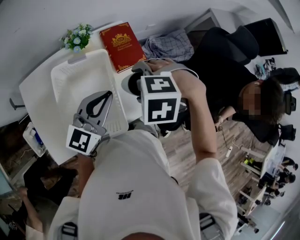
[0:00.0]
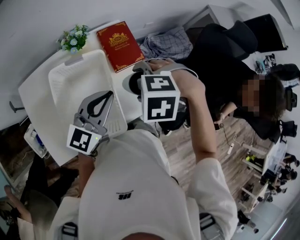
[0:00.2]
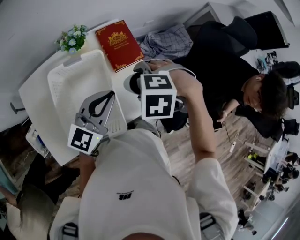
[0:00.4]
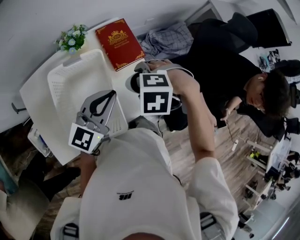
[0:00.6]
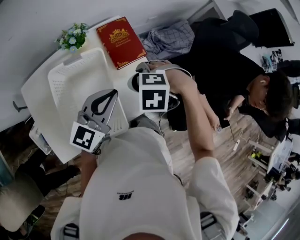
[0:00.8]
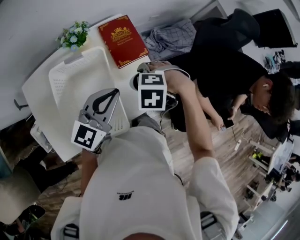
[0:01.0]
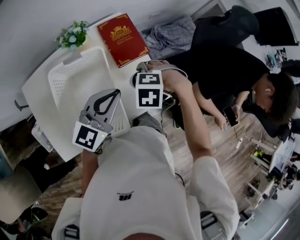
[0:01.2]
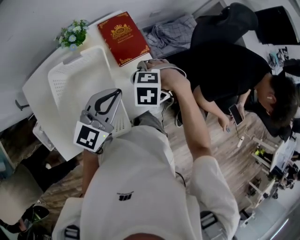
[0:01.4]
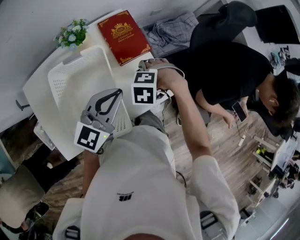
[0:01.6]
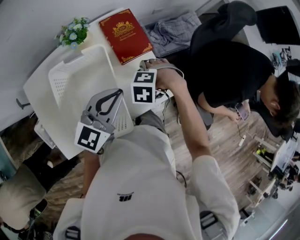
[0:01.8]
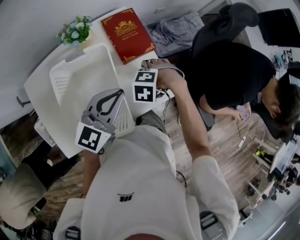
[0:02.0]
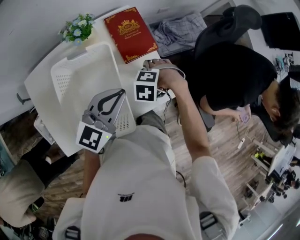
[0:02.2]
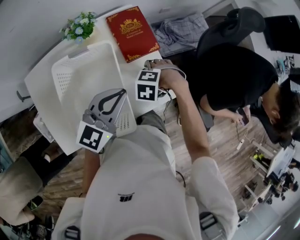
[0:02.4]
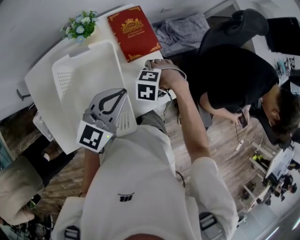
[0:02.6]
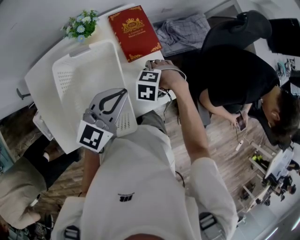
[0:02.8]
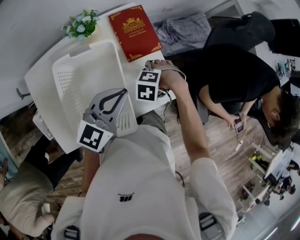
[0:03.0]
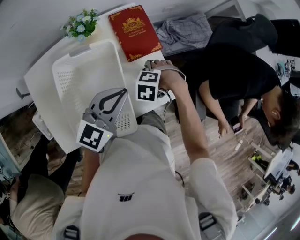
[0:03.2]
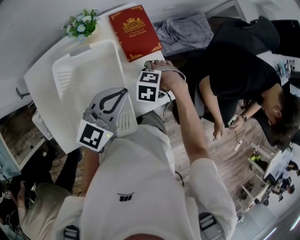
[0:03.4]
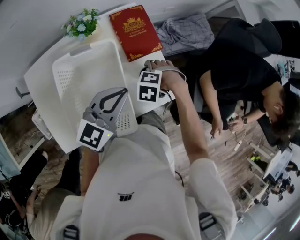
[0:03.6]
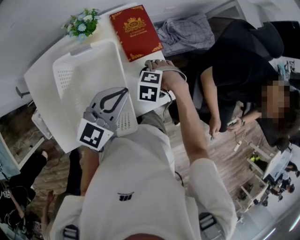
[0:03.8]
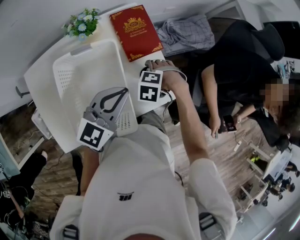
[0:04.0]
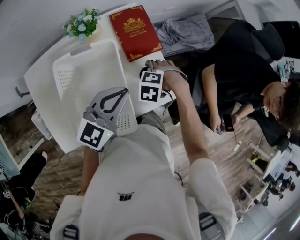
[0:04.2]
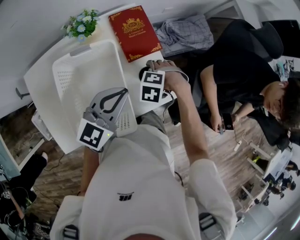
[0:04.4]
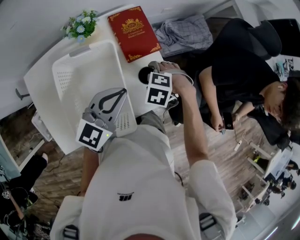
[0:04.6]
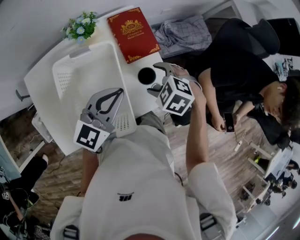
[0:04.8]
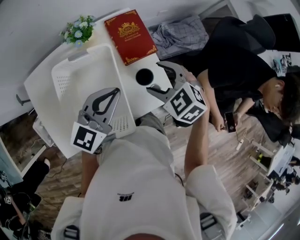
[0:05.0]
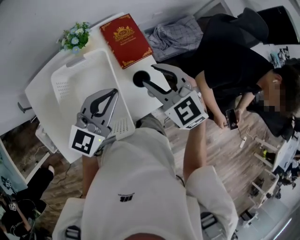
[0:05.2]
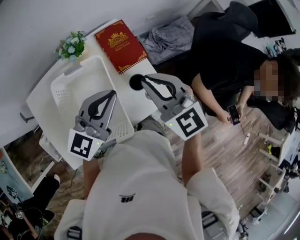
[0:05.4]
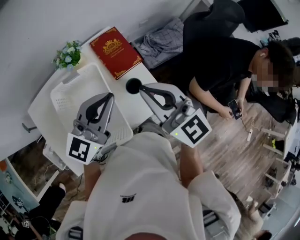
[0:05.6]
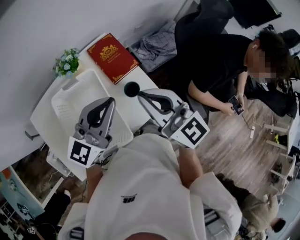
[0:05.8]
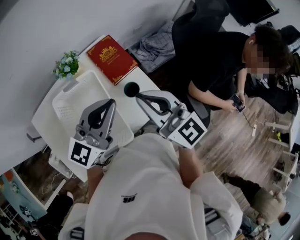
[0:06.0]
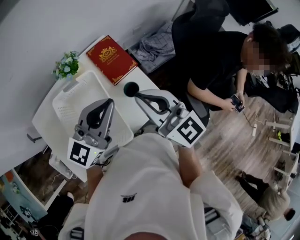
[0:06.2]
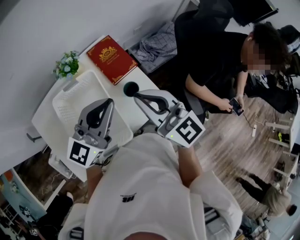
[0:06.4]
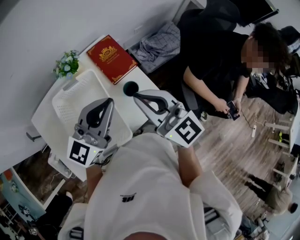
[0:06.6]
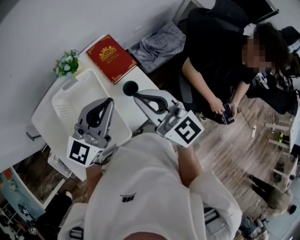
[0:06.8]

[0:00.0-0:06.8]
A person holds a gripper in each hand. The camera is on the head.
0:00.0 to 0:01.4: The left gripper shifts by about 5 cm. The right gripper moves downward, roughly 15 cm.
0:01.4 to 0:02.8: The right gripper is displaced downward by some 10 cm.
0:02.8 to 0:04.0: The two grippers keep their place.
0:04.0 to 0:05.4: The right gripper heads upward, covering roughly 25 cm, points its fingers about 70 degrees further upward, and closes its fingers, while the left gripper heads upward, covering some 5 cm.
0:05.4 to 0:06.8: The right gripper ends up about 5 cm from where it was, and turns by some 20 degrees; the left gripper shifts by about 5 cm.

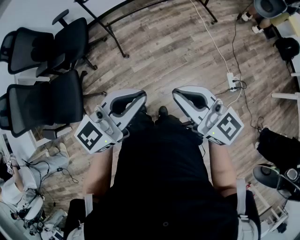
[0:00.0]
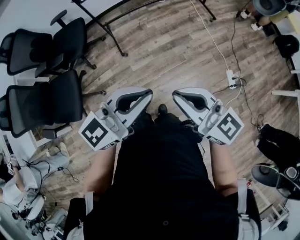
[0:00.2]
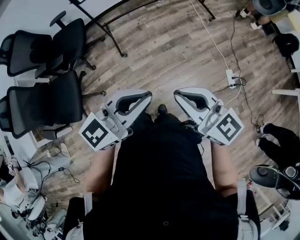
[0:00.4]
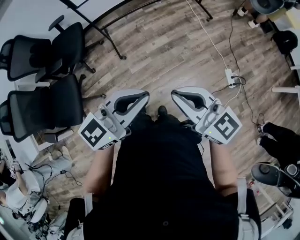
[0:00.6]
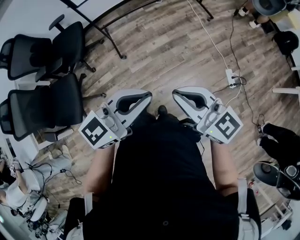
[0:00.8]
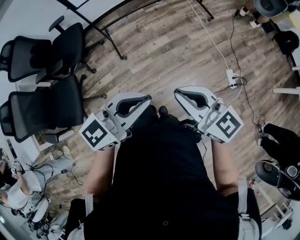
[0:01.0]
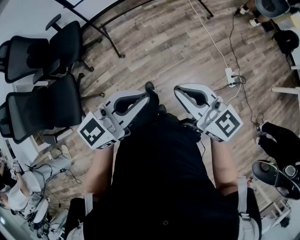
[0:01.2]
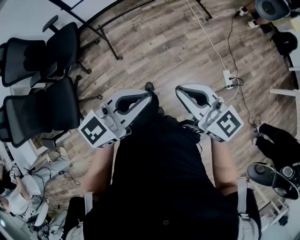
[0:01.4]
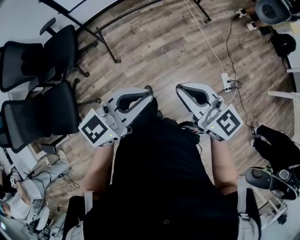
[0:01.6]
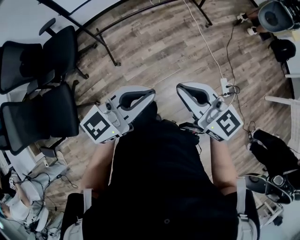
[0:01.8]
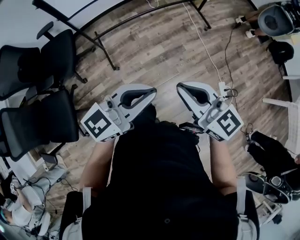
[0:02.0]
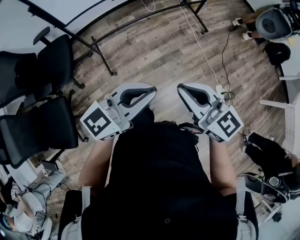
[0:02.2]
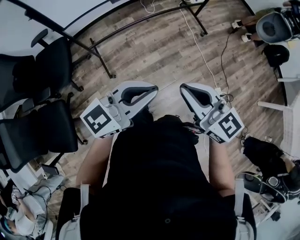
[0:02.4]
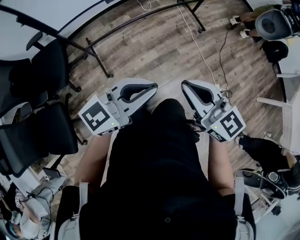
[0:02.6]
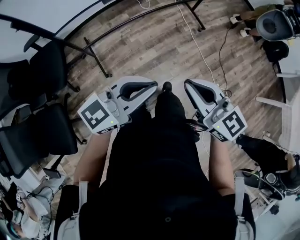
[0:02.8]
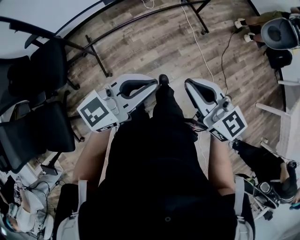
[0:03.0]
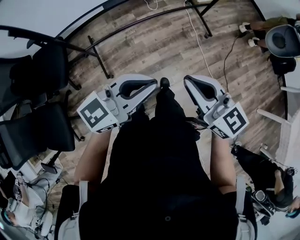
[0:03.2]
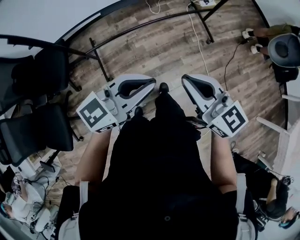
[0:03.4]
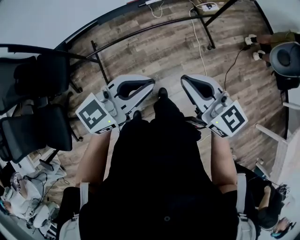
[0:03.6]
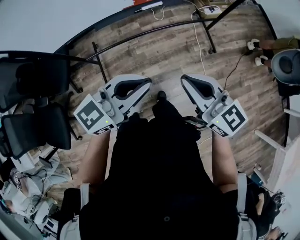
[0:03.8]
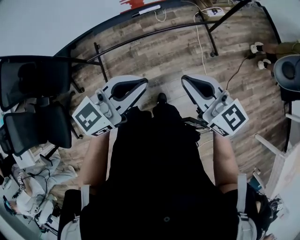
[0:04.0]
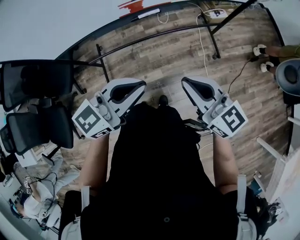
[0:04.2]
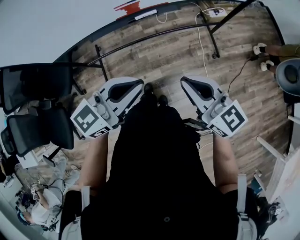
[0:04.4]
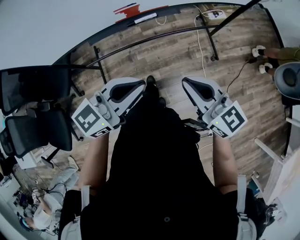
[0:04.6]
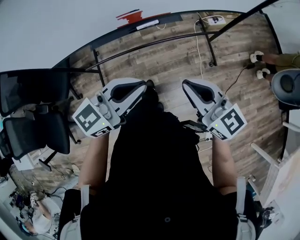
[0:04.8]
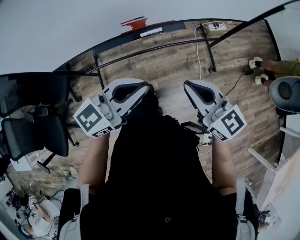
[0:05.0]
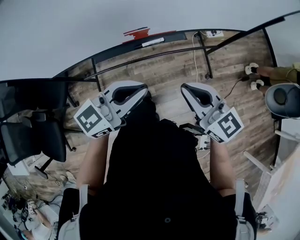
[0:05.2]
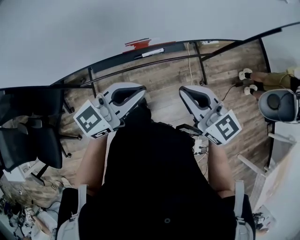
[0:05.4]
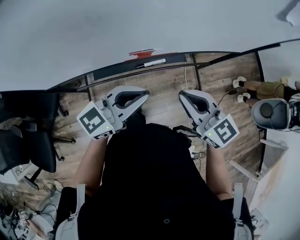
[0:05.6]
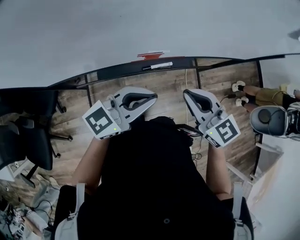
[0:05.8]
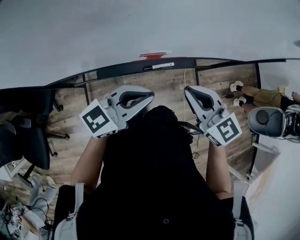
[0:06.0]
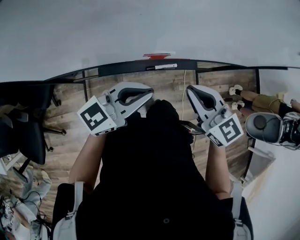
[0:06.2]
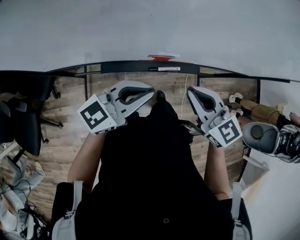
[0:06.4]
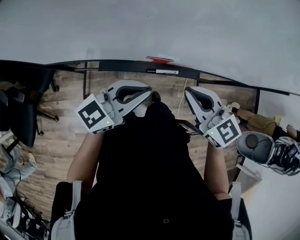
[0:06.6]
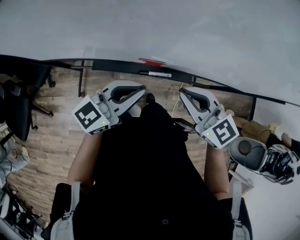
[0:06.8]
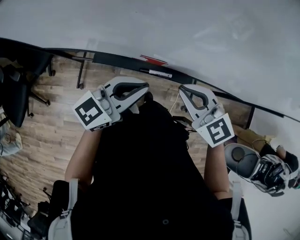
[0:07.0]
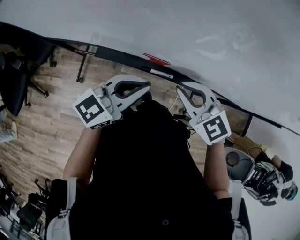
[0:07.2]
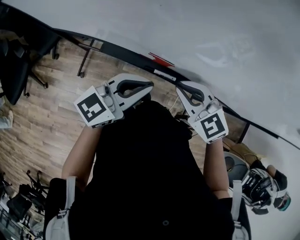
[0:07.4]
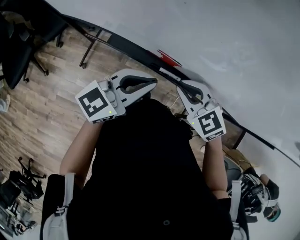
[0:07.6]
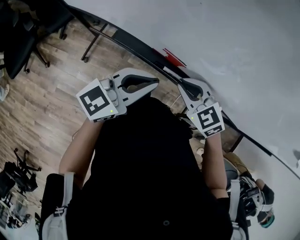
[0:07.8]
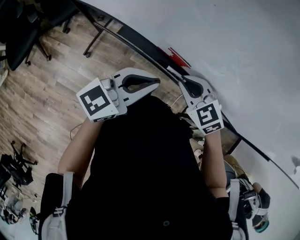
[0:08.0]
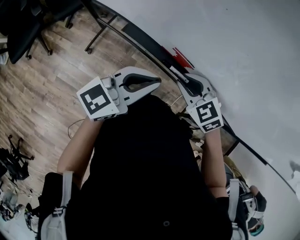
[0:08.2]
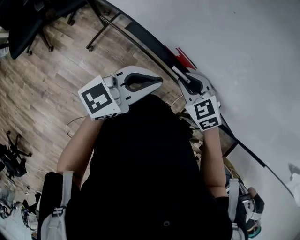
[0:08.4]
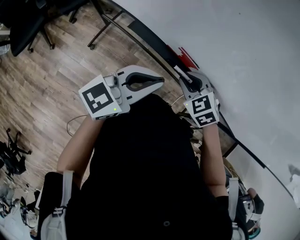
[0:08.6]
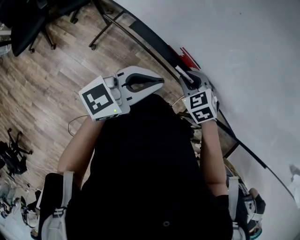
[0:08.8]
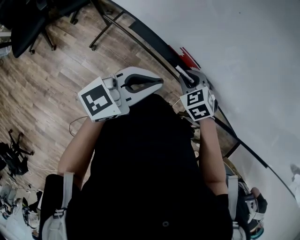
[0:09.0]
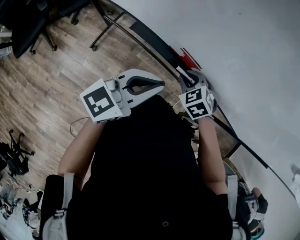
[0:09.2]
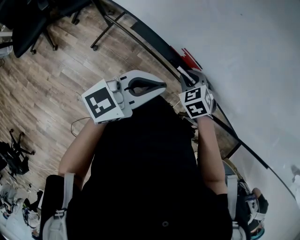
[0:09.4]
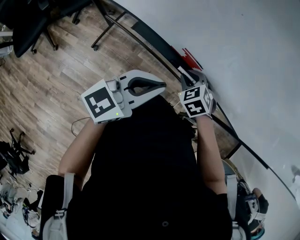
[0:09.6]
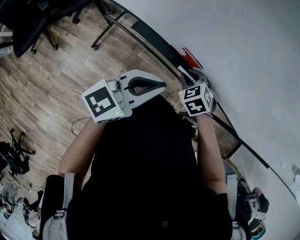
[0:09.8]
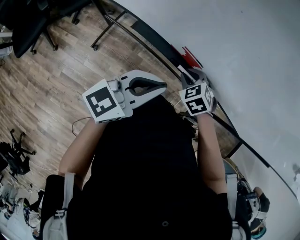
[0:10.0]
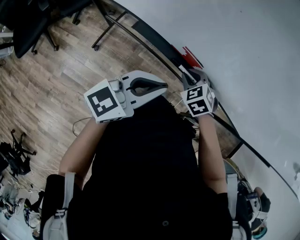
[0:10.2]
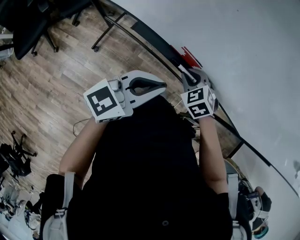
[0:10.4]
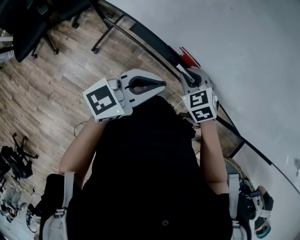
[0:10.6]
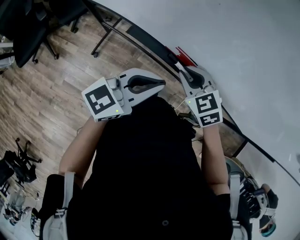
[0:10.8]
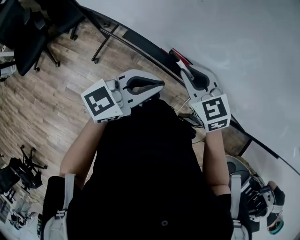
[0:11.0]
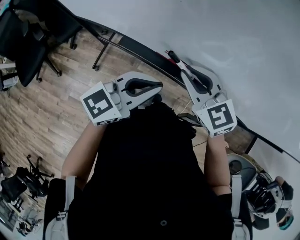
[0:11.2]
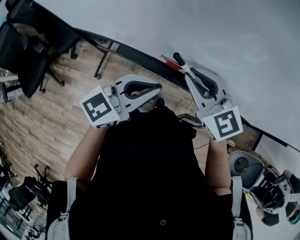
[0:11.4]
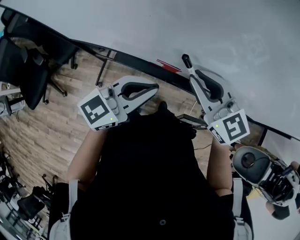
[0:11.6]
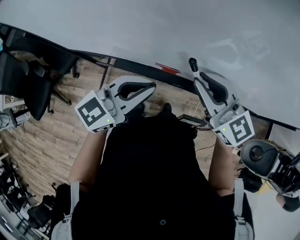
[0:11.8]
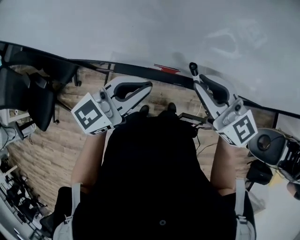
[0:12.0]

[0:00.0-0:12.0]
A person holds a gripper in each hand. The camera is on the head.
0:00.0 to 0:01.6: The two grippers go some 10 cm forward.
0:01.6 to 0:03.0: The two grippers go approximately 25 cm forward.
0:03.0 to 0:04.4: Both grippers move forward and to the right, about 30 cm.
0:04.4 to 0:06.0: The two grippers go some 25 cm forward and to the left. The right gripper turns by some 20 degrees.
0:06.0 to 0:07.6: The right gripper travels downward by approximately 10 cm, and rotates approximately 50 degrees; the left gripper moves roughly 5 cm, and swivels about 30 degrees.
0:07.6 to 0:09.0: The left gripper changes place by some 5 cm, while the right gripper is displaced downward by roughly 10 cm, and changes its angle by some 20 degrees.
0:09.0 to 0:10.4: The grippers move only a little.
0:10.4 to 0:12.0: The right gripper travels upward by some 25 cm, and points its fingers some 60 degrees further upward. The left gripper goes roughly 10 cm upward, and turns by about 20 degrees.

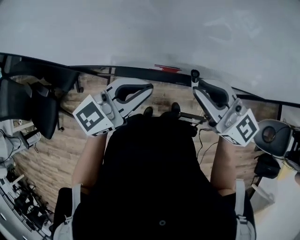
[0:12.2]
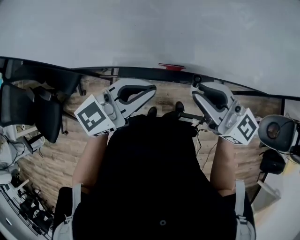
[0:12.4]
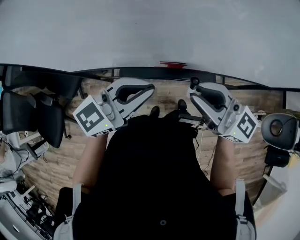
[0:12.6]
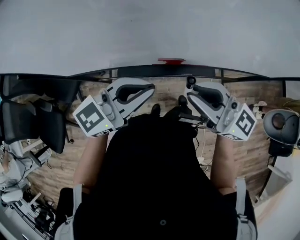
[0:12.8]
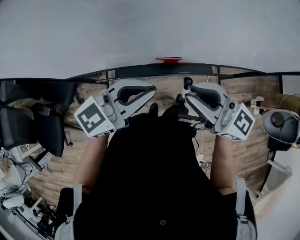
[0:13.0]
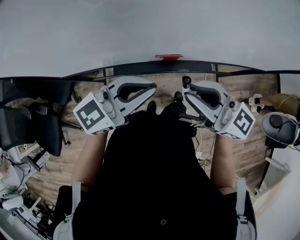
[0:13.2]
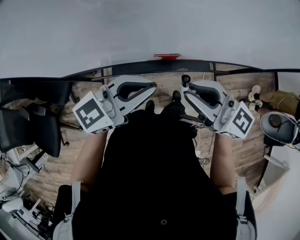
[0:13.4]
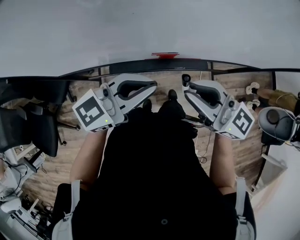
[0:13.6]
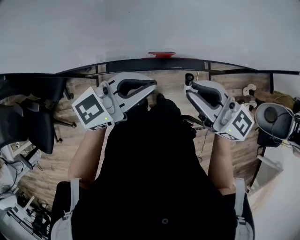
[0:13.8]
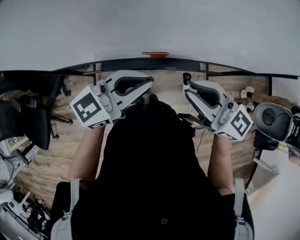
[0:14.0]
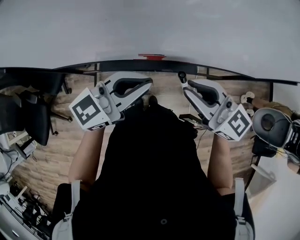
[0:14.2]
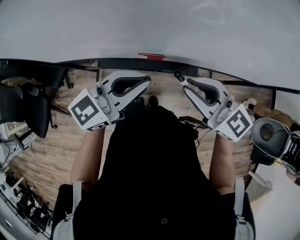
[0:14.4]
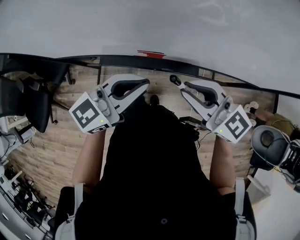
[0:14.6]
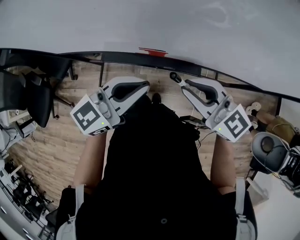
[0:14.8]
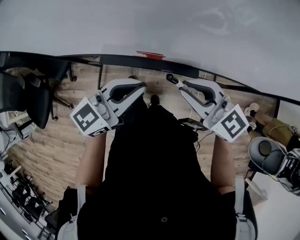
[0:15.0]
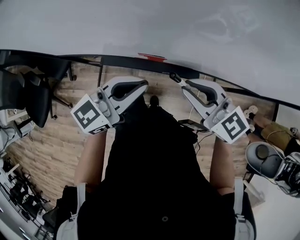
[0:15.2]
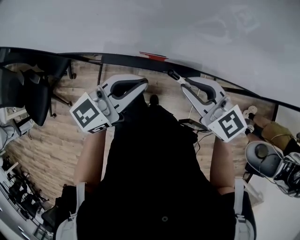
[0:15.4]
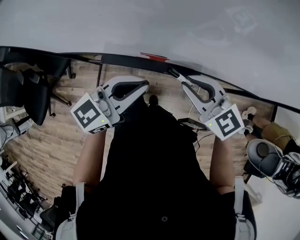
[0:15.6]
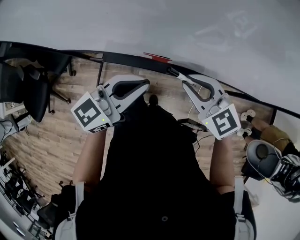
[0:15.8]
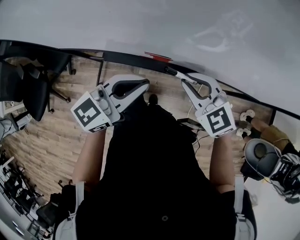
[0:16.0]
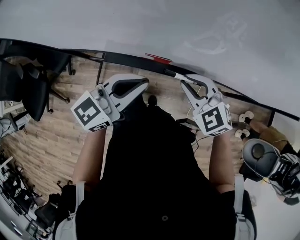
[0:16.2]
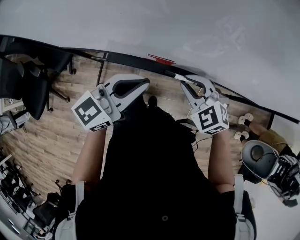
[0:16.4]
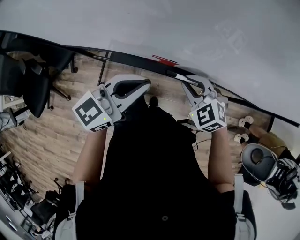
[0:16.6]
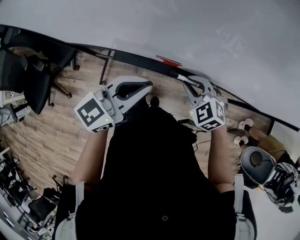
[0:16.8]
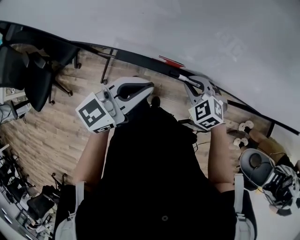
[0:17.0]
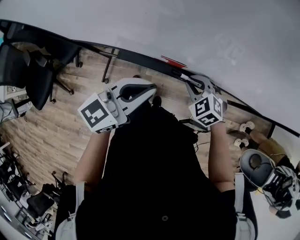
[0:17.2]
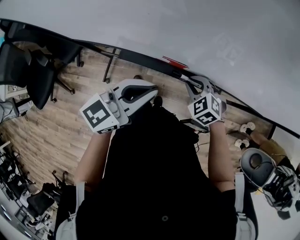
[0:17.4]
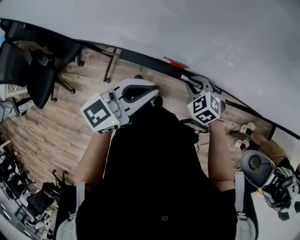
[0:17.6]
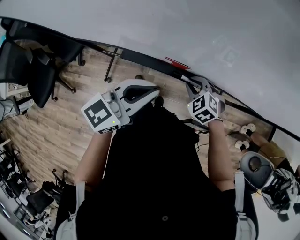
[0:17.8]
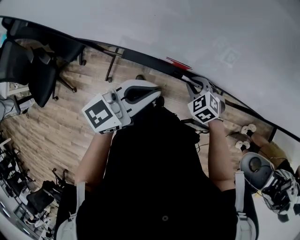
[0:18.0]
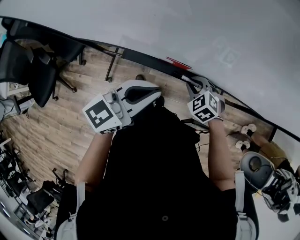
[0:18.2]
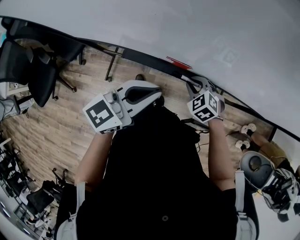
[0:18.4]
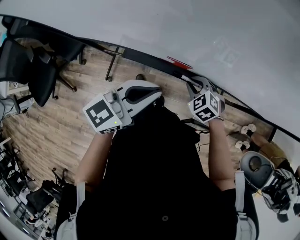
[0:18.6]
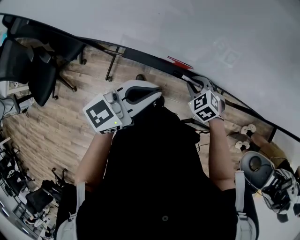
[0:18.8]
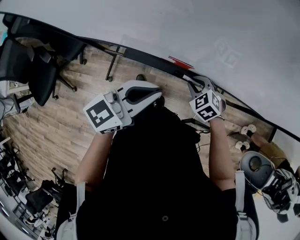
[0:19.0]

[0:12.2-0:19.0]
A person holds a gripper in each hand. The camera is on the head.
0:12.2 to 0:13.6: The right gripper is displaced backward by approximately 5 cm.
0:13.6 to 0:15.0: The left gripper swivels roughly 20 degrees. The right gripper ends up approximately 10 cm from where it was.
0:15.0 to 0:16.2: The right gripper shifts roughly 5 cm downward, and swivels roughly 40 degrees.
0:16.2 to 0:17.6: The right gripper goes about 10 cm downward.
0:17.6 to 0:19.0: The grippers make only small movements.
